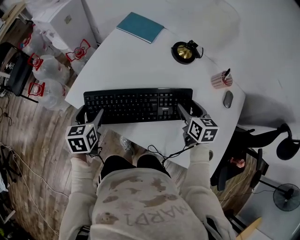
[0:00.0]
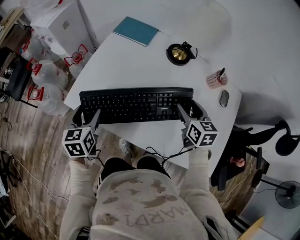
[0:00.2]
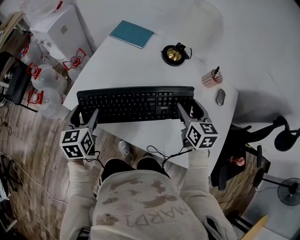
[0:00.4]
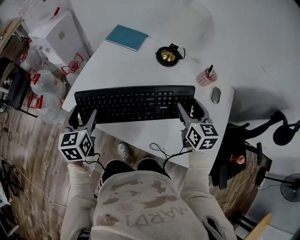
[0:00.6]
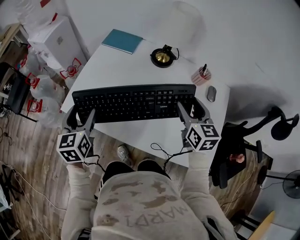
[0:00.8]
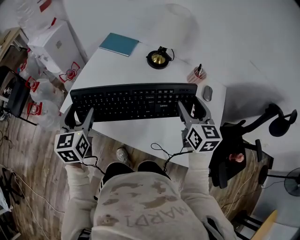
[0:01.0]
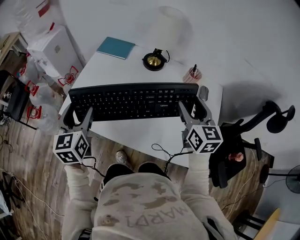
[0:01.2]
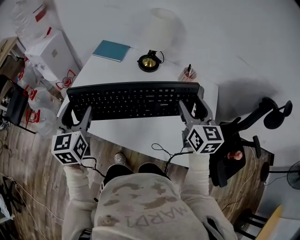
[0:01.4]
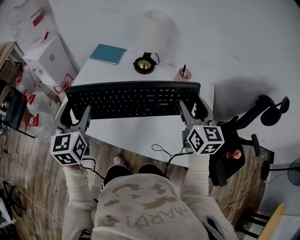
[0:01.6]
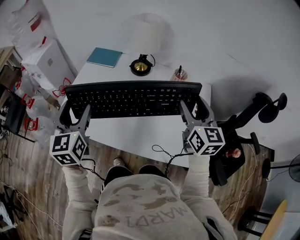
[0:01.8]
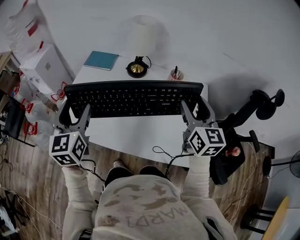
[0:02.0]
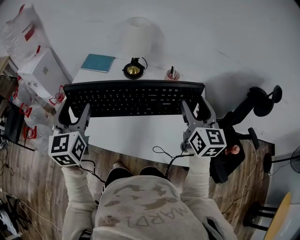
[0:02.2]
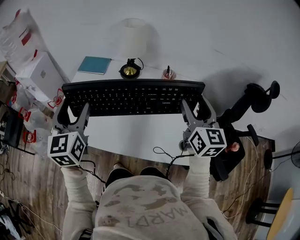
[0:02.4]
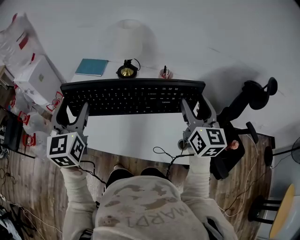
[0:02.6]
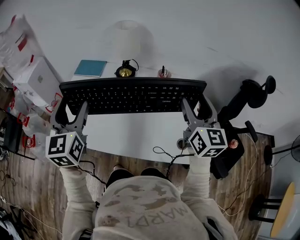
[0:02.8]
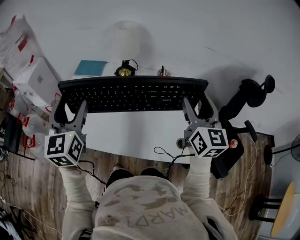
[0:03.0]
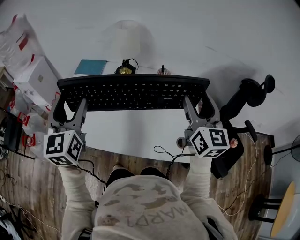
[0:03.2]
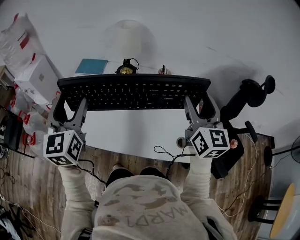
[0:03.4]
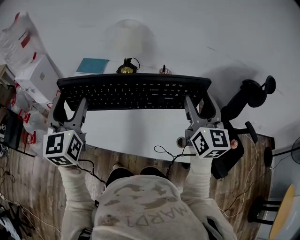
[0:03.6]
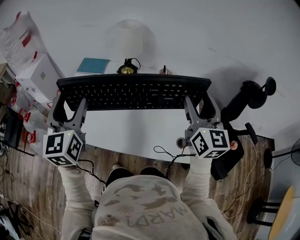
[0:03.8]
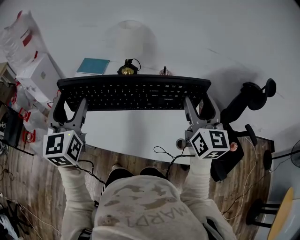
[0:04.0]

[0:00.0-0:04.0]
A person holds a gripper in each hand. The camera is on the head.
0:00.0 to 0:01.4: The left gripper travels upward and to the right by some 20 cm, and rotates some 30 degrees, while the right gripper goes some 20 cm upward and backward, and changes its angle by some 30 degrees.
0:01.4 to 0:02.6: The right gripper heads upward, to the right and backward, covering some 10 cm. The left gripper travels upward and to the right by about 10 cm.
0:02.6 to 0:04.0: The grippers move only a little.

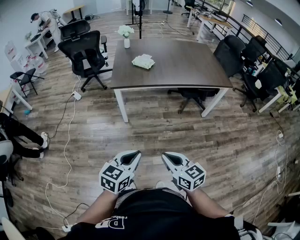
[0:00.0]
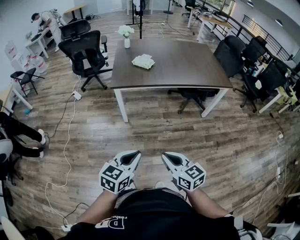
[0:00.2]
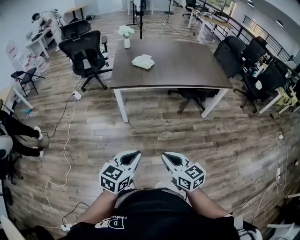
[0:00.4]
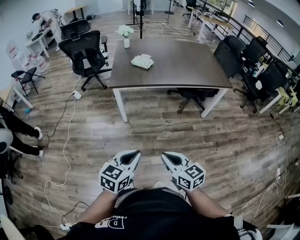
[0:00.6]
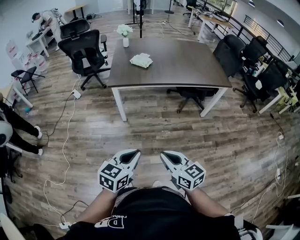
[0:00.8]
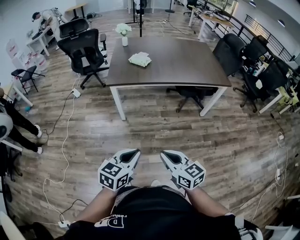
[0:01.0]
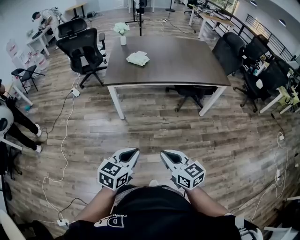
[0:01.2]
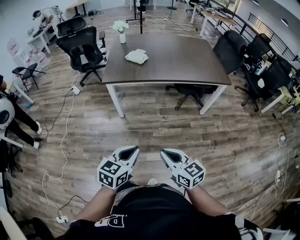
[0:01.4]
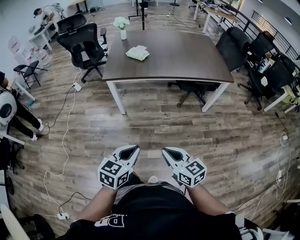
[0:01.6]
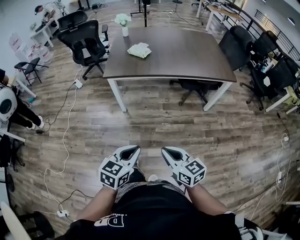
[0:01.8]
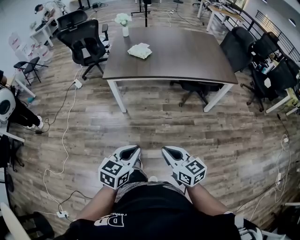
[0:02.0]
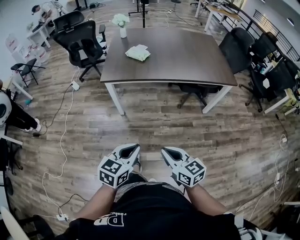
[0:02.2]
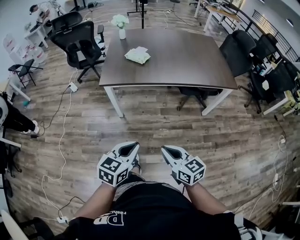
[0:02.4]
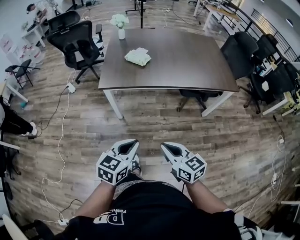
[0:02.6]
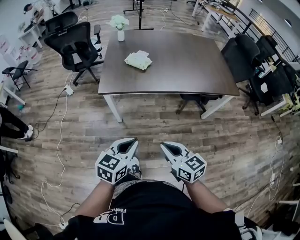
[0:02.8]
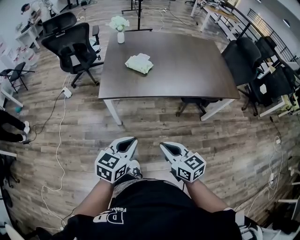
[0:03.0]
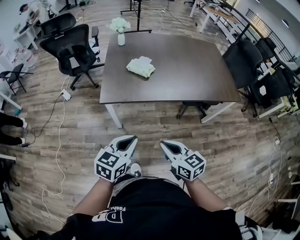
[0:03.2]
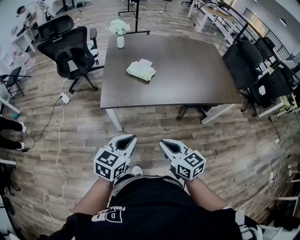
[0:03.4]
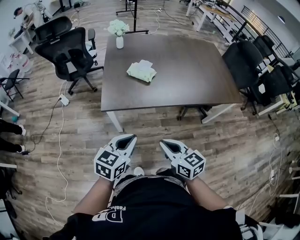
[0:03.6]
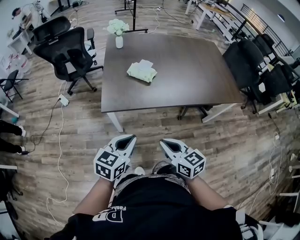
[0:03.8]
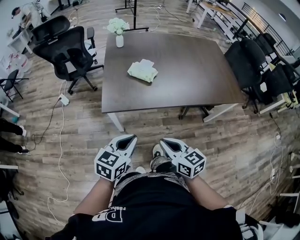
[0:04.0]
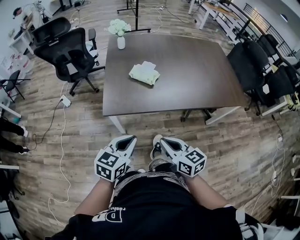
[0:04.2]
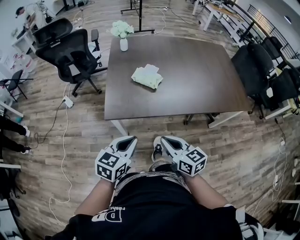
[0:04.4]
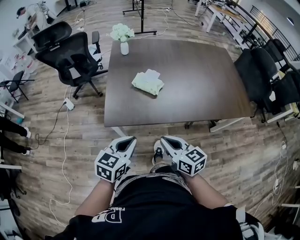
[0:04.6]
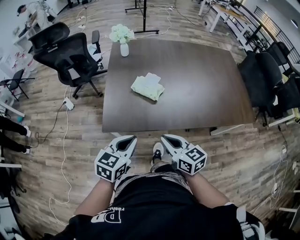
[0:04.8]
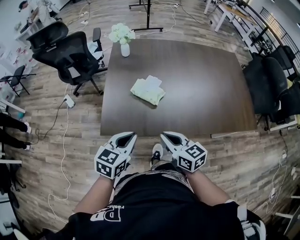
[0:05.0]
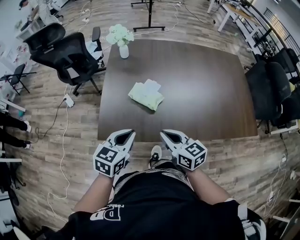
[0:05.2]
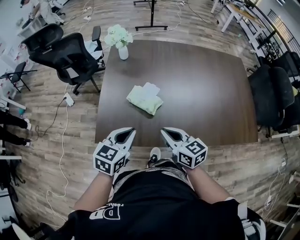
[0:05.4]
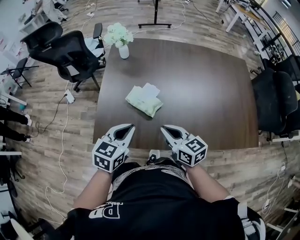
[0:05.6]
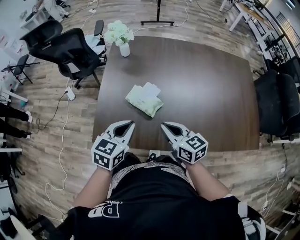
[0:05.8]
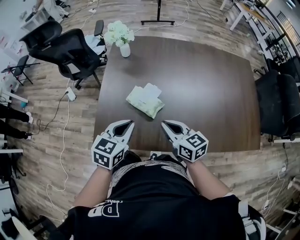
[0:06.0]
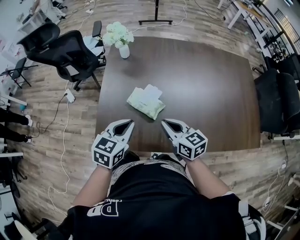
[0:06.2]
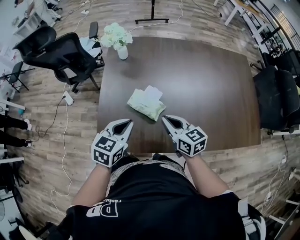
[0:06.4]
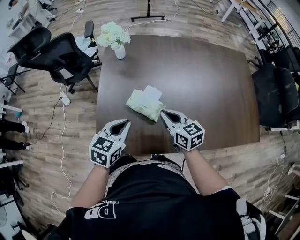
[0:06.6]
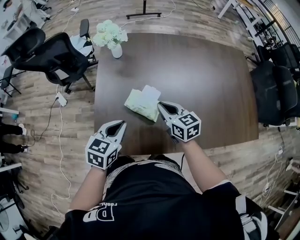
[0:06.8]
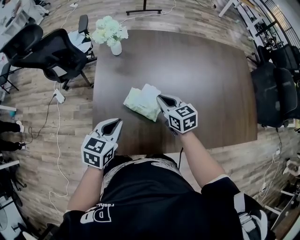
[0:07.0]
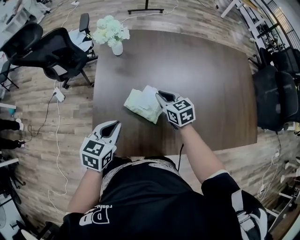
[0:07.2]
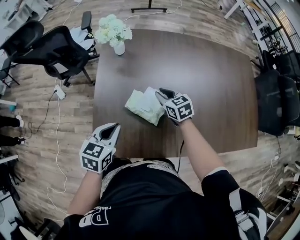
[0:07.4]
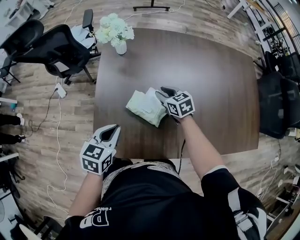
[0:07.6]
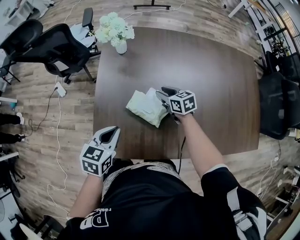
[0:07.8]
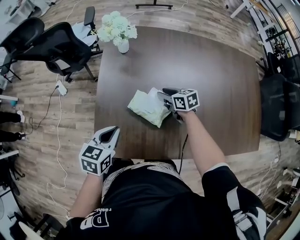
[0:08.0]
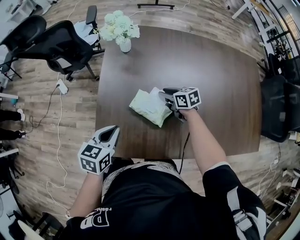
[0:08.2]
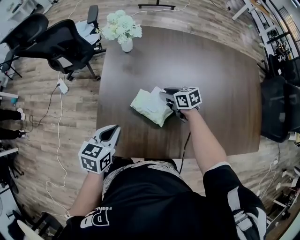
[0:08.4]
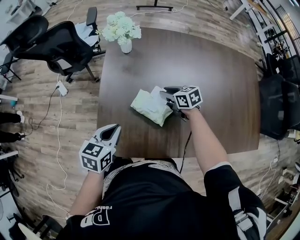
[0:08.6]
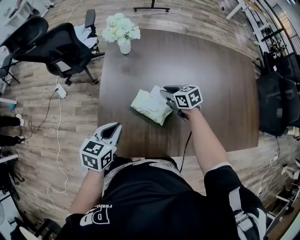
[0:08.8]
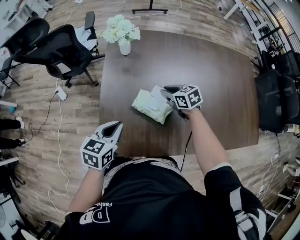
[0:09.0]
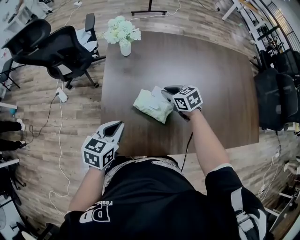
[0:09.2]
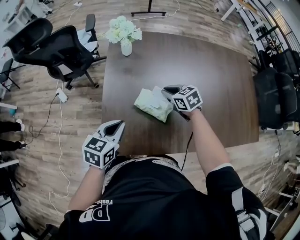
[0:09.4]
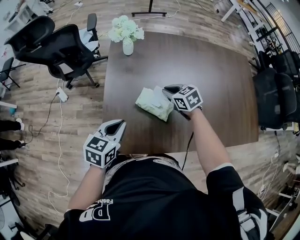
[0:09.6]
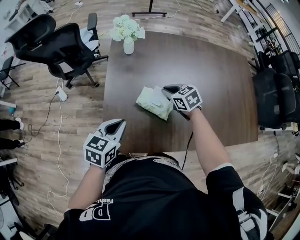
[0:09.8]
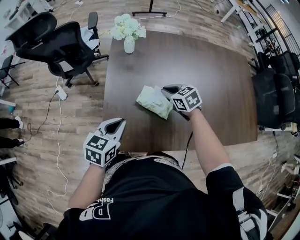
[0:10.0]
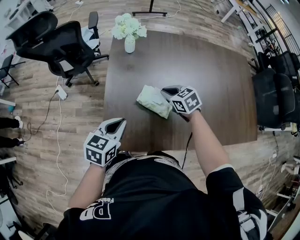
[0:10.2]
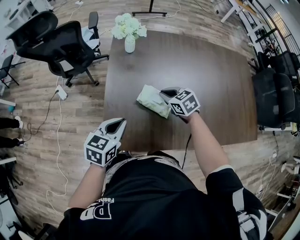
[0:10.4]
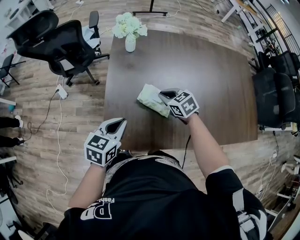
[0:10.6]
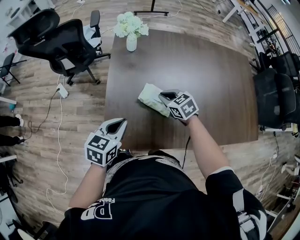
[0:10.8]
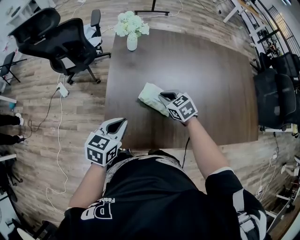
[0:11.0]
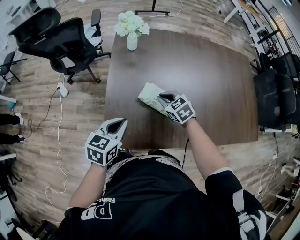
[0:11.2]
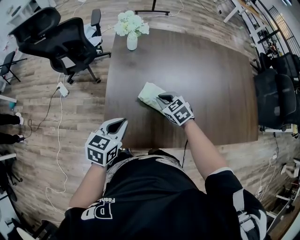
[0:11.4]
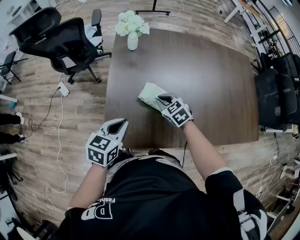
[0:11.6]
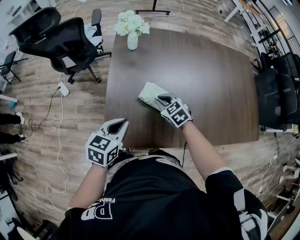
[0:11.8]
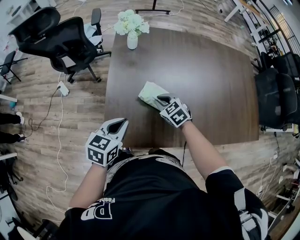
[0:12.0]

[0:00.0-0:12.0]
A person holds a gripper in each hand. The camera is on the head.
0:00.0 to 0:01.6: The two grippers go about 10 cm to the right.
0:01.6 to 0:03.0: The grippers both shift forward by about 25 cm.
0:03.0 to 0:04.4: The grippers both shift forward by some 15 cm.
0:04.4 to 0:06.0: The grippers both shift forward by about 30 cm.
0:06.0 to 0:07.6: The left gripper shifts approximately 10 cm to the left, forward and downward. The right gripper is displaced forward and downward by approximately 25 cm, changes its angle by approximately 20 degrees, and opens up.
0:07.6 to 0:09.0: The grippers make only small movements.
0:09.0 to 0:10.4: The right gripper travels backward by approximately 5 cm.
0:10.4 to 0:12.0: The right gripper ends up approximately 5 cm from where it was.

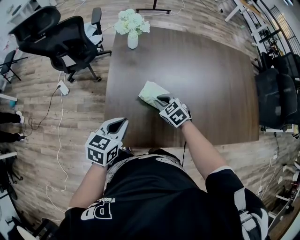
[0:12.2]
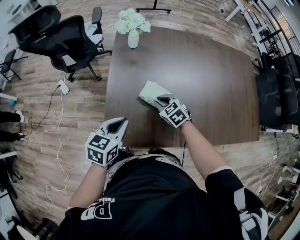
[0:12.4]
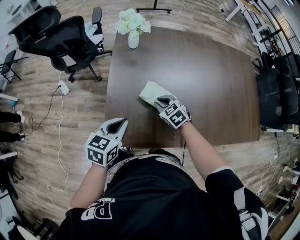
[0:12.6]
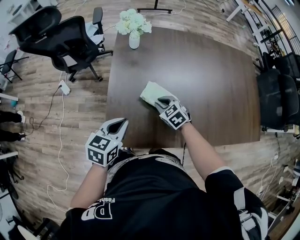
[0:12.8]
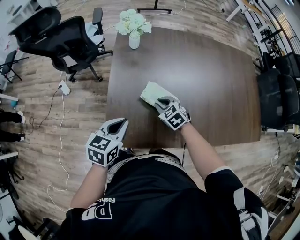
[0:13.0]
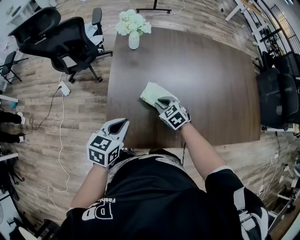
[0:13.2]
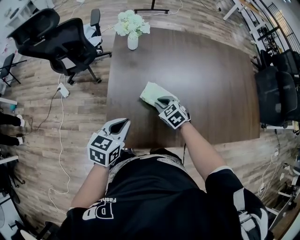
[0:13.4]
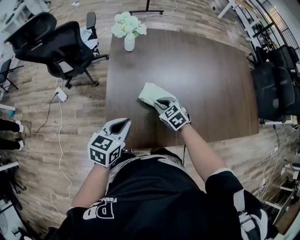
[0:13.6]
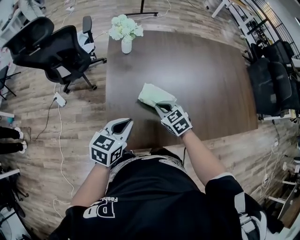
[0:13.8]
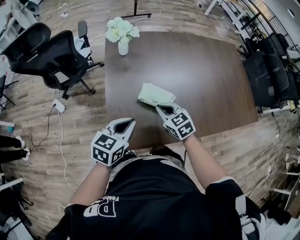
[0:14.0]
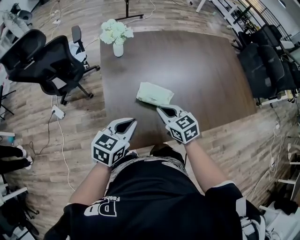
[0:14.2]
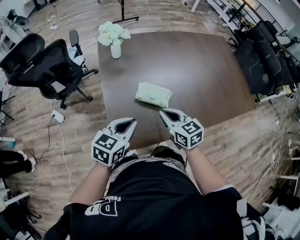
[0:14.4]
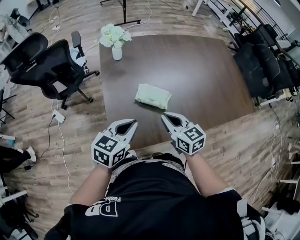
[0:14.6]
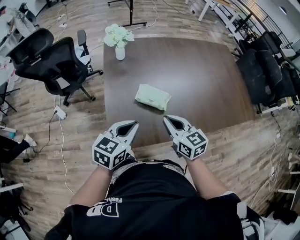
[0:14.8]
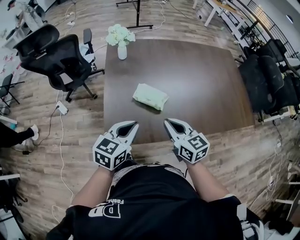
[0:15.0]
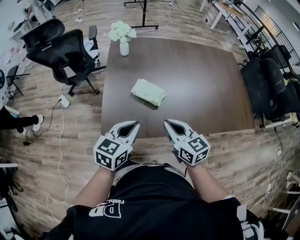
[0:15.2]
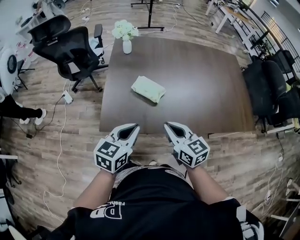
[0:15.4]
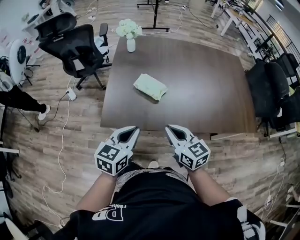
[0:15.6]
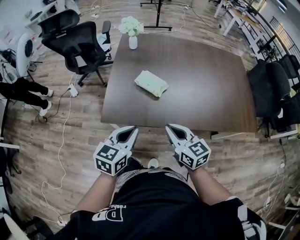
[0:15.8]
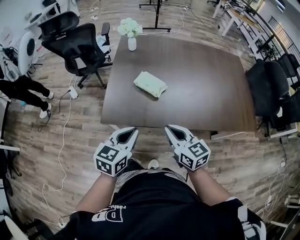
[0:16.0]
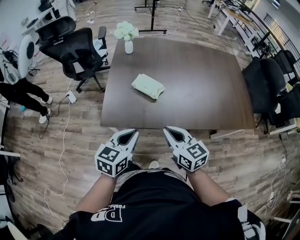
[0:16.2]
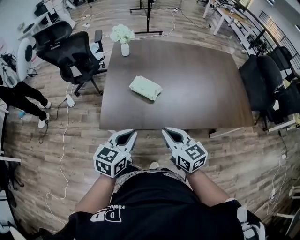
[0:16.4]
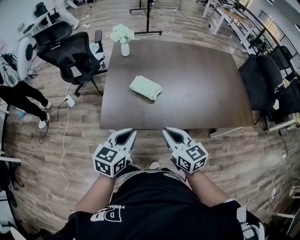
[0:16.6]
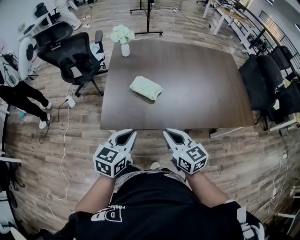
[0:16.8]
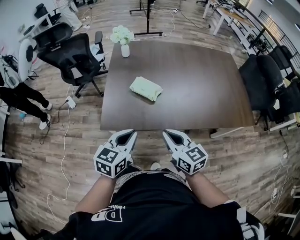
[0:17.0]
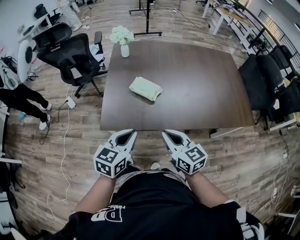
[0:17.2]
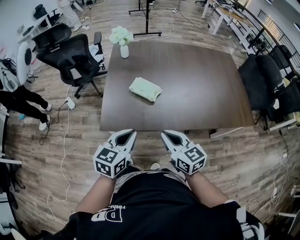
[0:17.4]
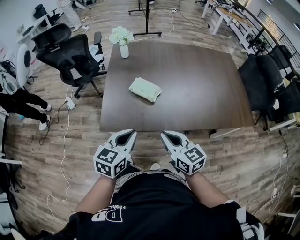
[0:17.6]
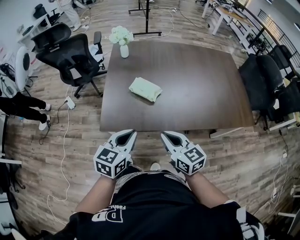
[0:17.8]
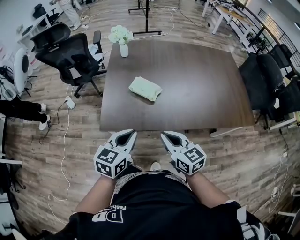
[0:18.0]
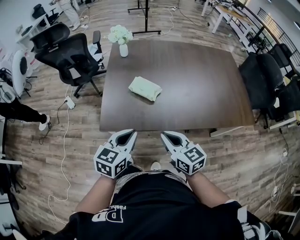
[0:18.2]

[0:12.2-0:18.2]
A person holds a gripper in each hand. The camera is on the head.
0:12.2 to 0:13.8: The grippers make only small movements.
0:13.8 to 0:15.2: The left gripper shifts some 15 cm to the right, backward and upward. The right gripper travels backward, upward and to the right by roughly 25 cm, and swivels approximately 30 degrees.
0:15.2 to 0:16.6: The grippers both shift backward by some 10 cm.
0:16.6 to 0:18.2: The grippers make only small movements.

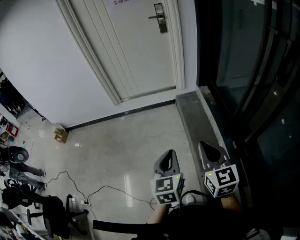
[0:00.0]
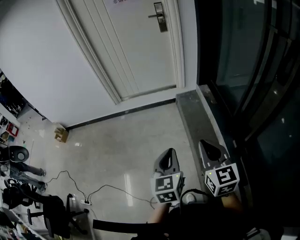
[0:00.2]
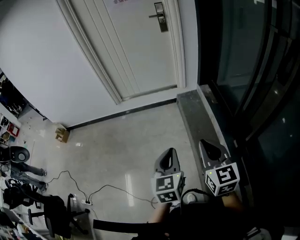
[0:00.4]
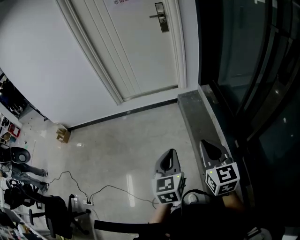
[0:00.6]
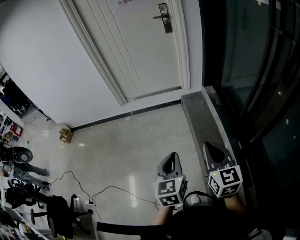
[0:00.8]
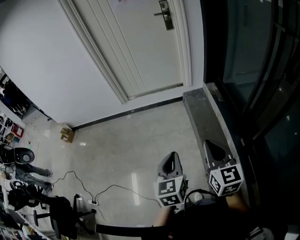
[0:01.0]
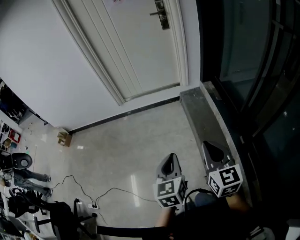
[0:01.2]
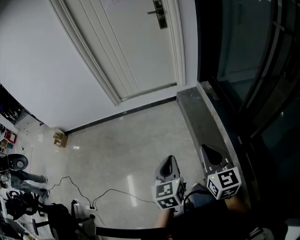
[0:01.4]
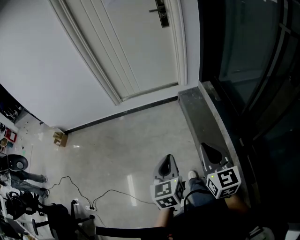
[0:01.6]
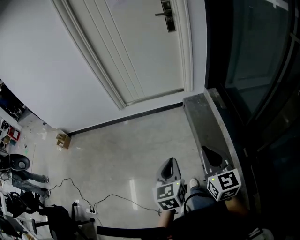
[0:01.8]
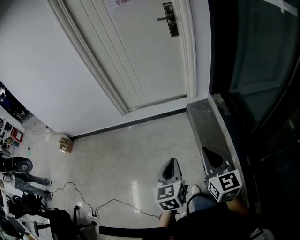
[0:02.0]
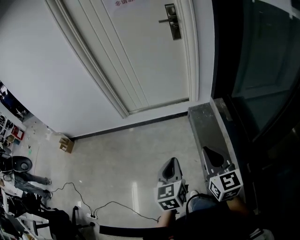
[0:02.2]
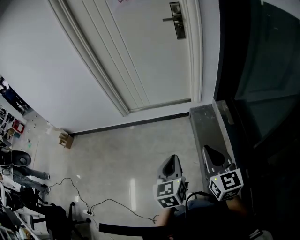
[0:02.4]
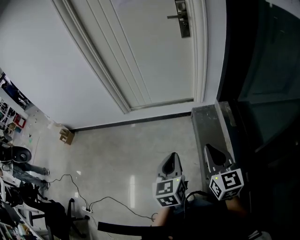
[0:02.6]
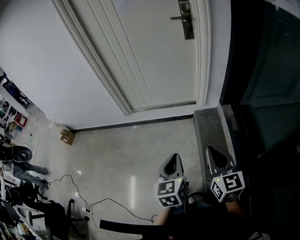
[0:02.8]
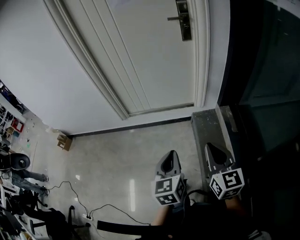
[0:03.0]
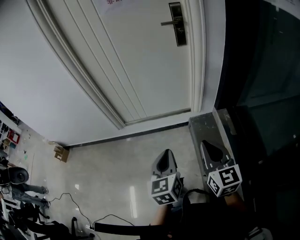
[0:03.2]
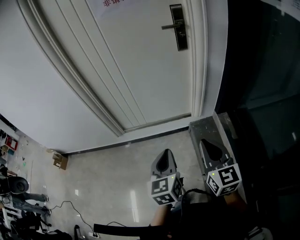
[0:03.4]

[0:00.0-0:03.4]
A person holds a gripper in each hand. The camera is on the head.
0:00.0 to 0:01.6: Both grippers travel together to the left and forward, roughly 10 cm.
0:01.6 to 0:03.4: The two grippers travel together, forward, about 50 cm.
